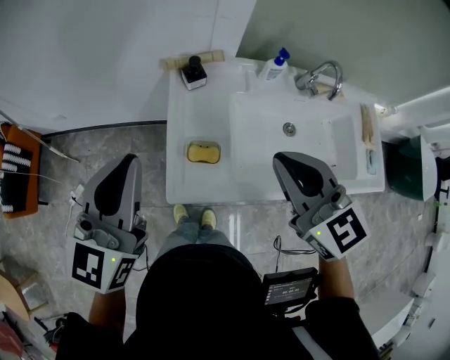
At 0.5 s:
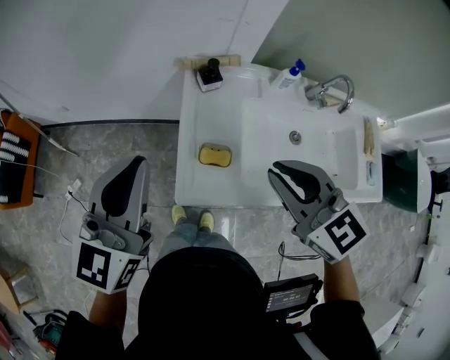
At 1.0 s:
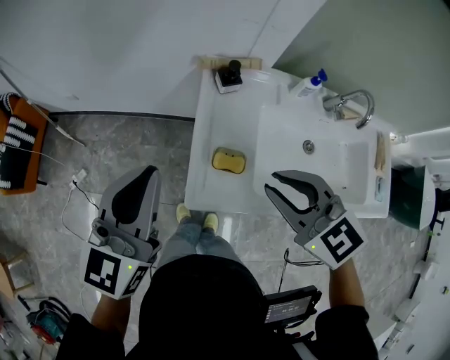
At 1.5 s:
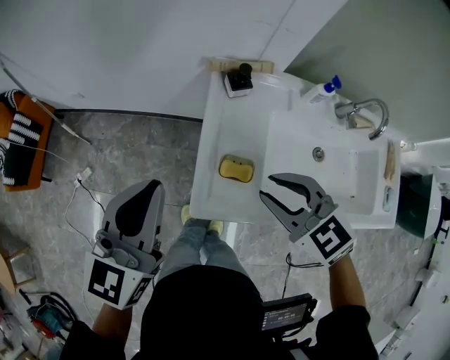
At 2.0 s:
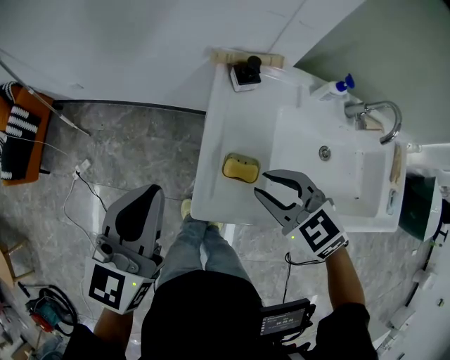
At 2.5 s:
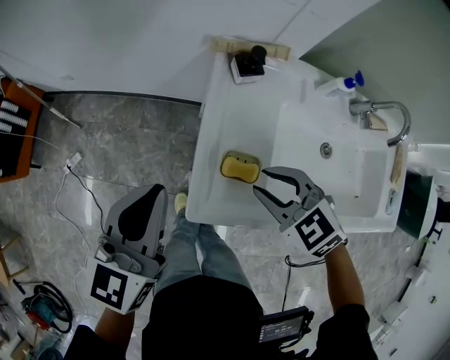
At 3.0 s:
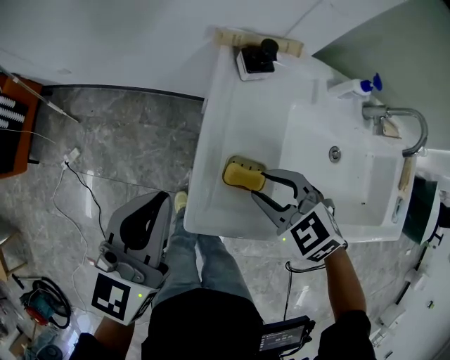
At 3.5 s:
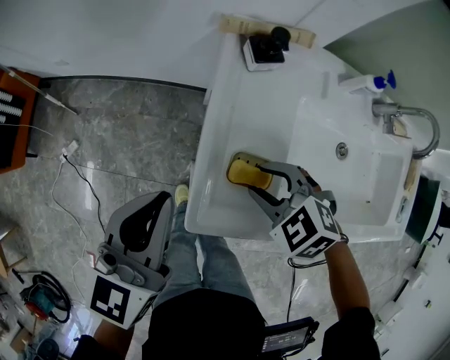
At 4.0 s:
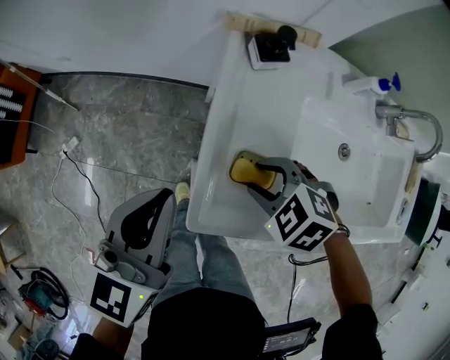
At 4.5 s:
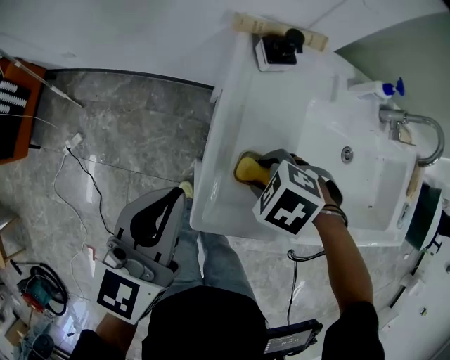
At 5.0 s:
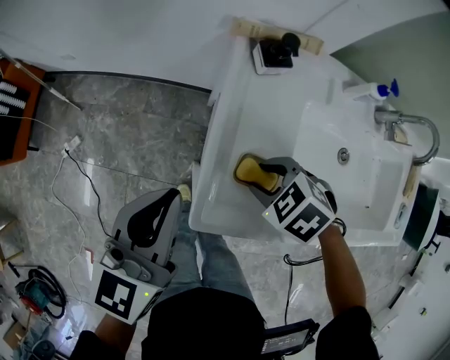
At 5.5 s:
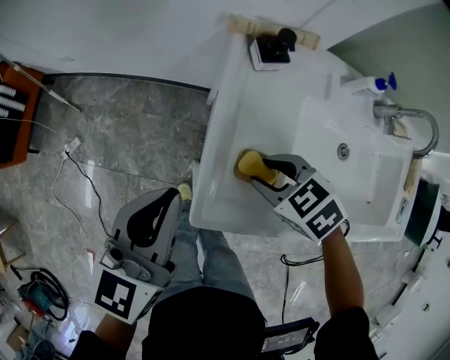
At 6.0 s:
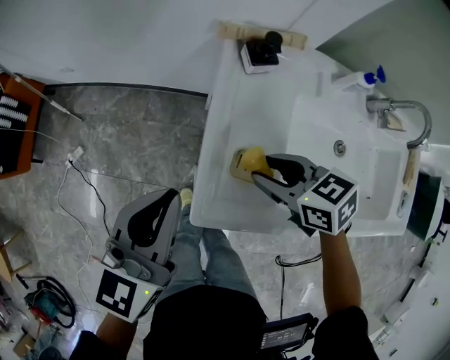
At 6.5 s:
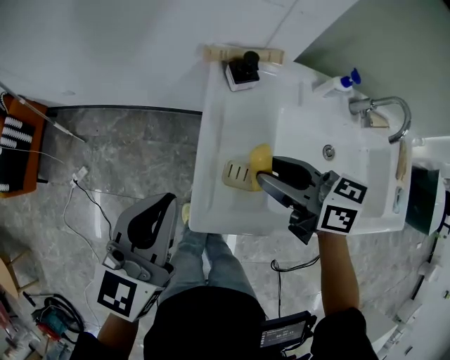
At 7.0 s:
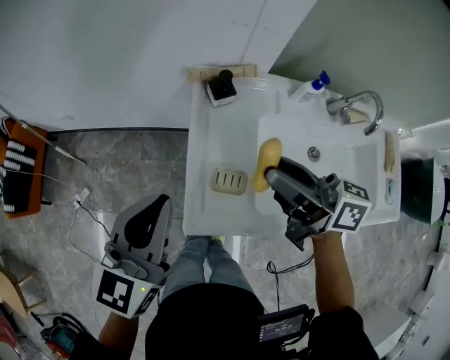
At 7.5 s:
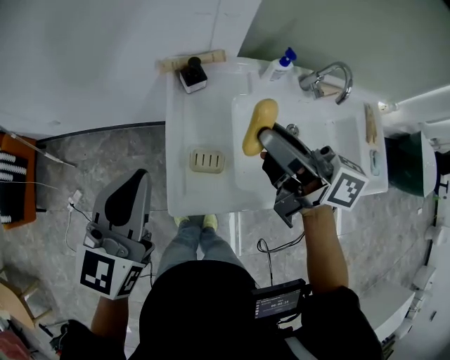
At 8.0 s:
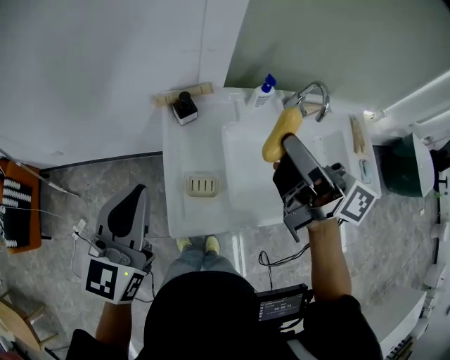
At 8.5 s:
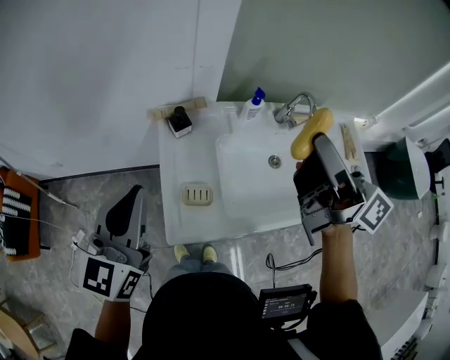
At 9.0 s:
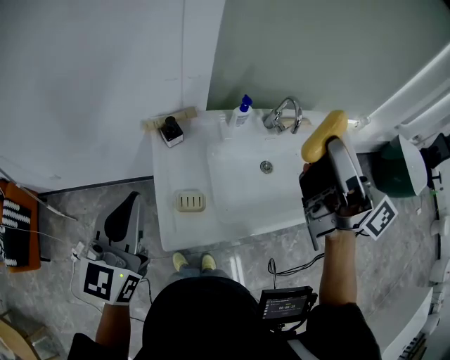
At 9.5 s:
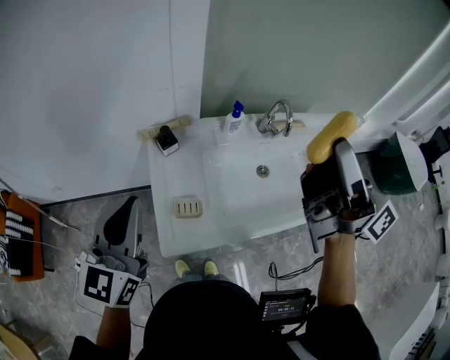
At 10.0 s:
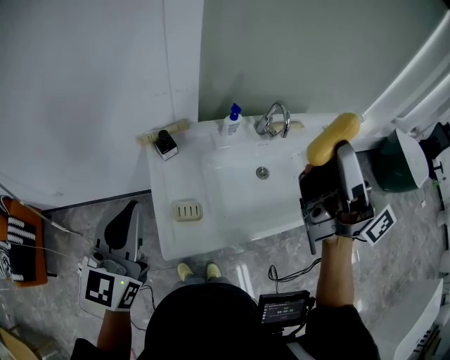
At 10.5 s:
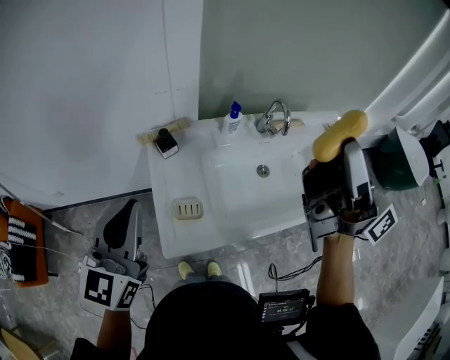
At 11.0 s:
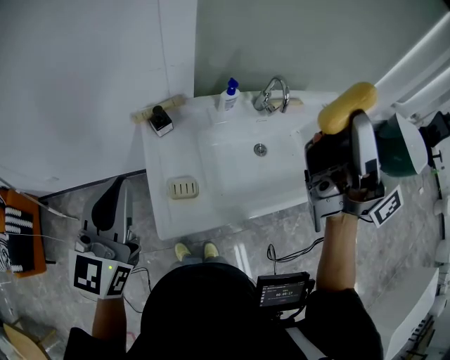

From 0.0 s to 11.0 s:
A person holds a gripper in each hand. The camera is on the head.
From 0.0 s to 2.0 s: The right gripper travels downward and to the left by approximately 20 cm, rotates about 40 degrees, and opens up, while the left gripper is displaced downward and to the left by about 10 cm.
From 2.0 s to 3.5 s: The grippers both shift downward by roughly 10 cm.
From 5.5 s to 7.5 s: The right gripper moves upward, approximately 30 cm, and angles its fingers upward, by roughly 70 degrees; the left gripper travels upward by roughly 15 cm.
From 7.5 s to 9.0 s: The right gripper goes about 20 cm upward and to the right, and changes its angle by roughly 30 degrees, while the left gripper shifts approximately 5 cm upward.
From 9.0 s to 11.0 s: The right gripper changes place by some 5 cm.

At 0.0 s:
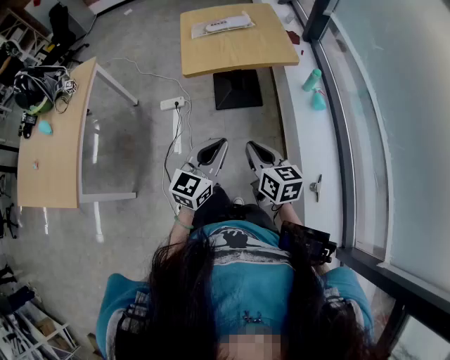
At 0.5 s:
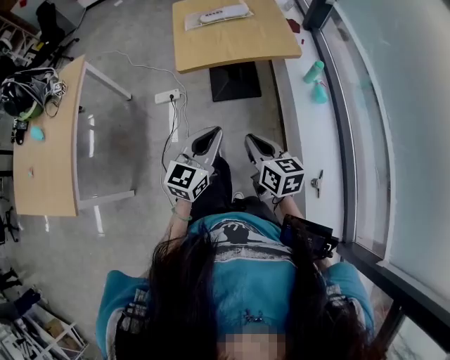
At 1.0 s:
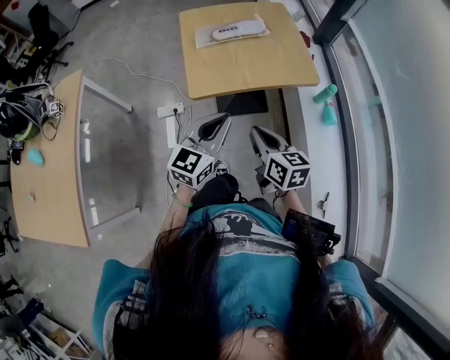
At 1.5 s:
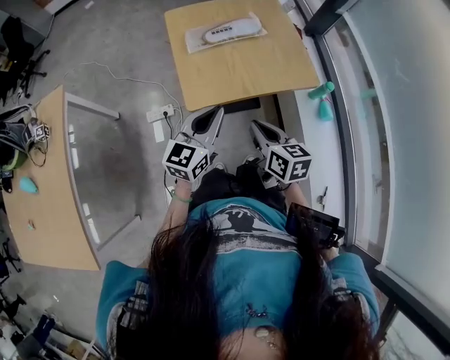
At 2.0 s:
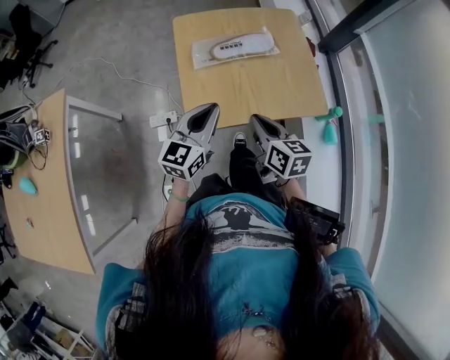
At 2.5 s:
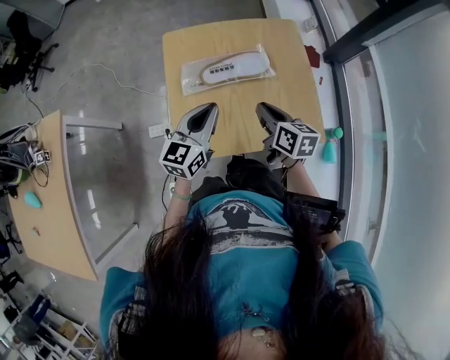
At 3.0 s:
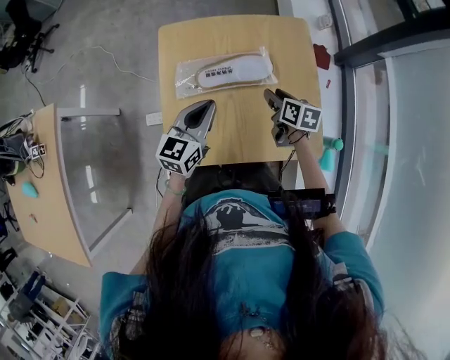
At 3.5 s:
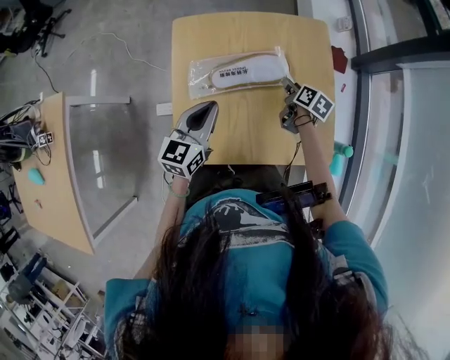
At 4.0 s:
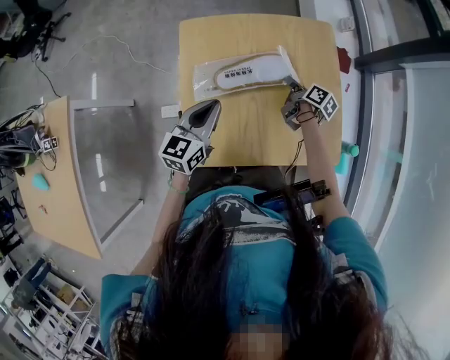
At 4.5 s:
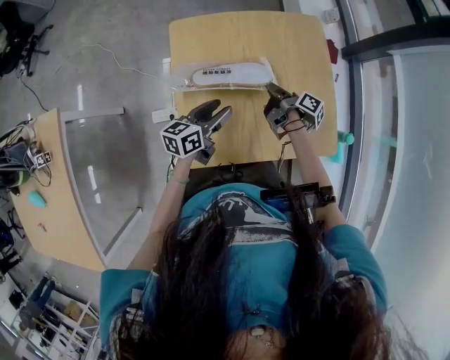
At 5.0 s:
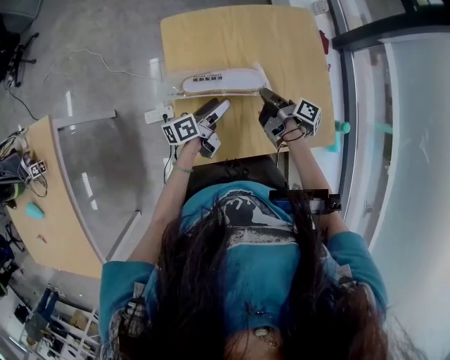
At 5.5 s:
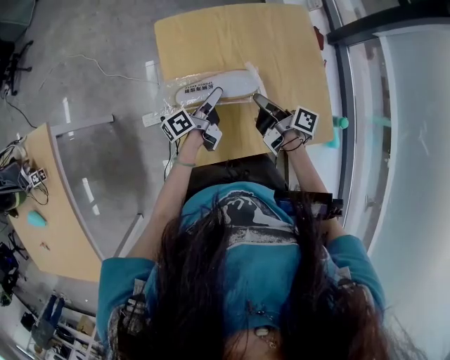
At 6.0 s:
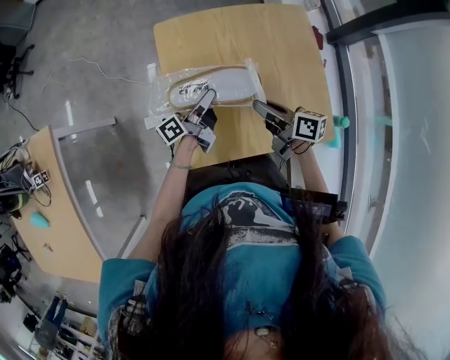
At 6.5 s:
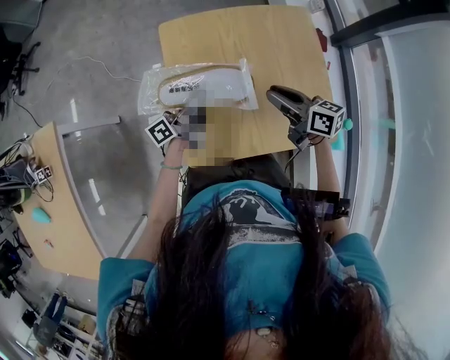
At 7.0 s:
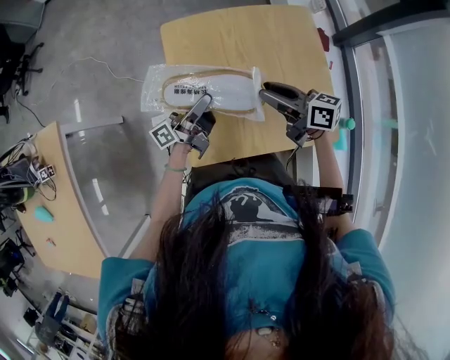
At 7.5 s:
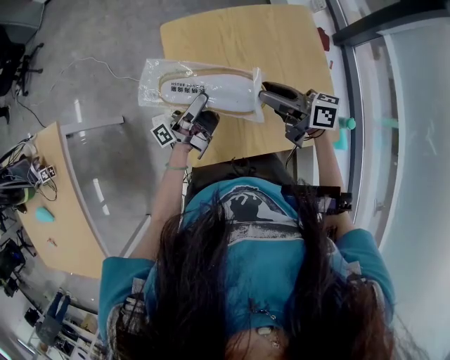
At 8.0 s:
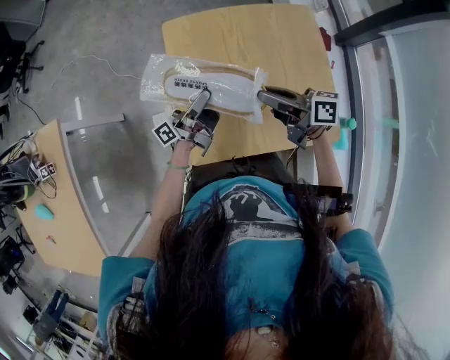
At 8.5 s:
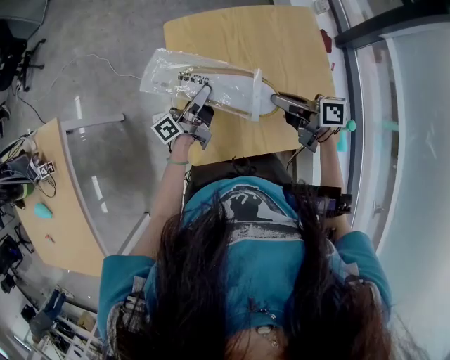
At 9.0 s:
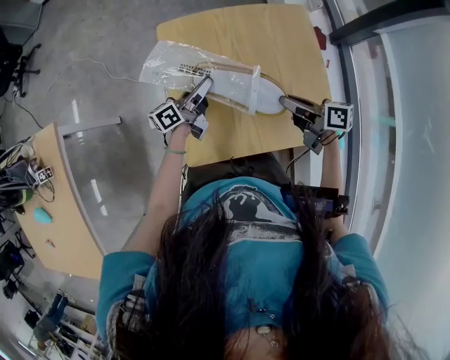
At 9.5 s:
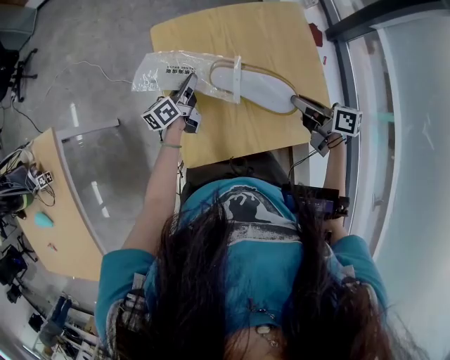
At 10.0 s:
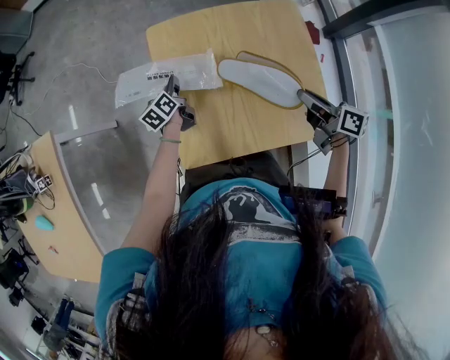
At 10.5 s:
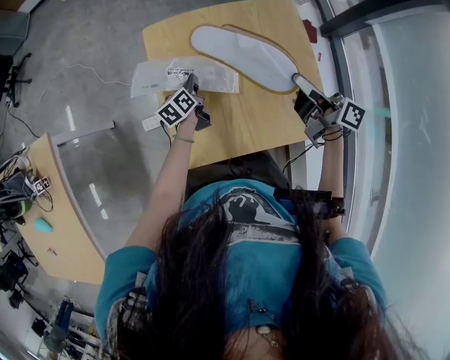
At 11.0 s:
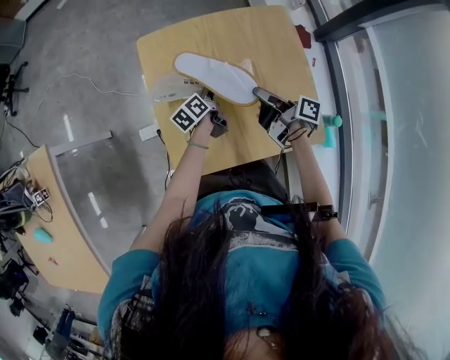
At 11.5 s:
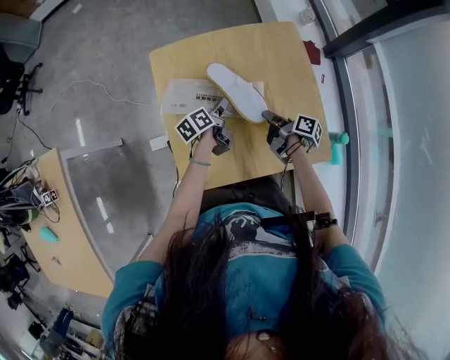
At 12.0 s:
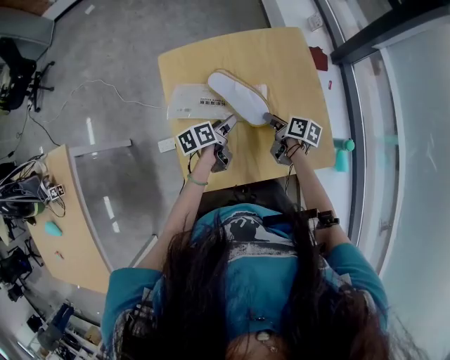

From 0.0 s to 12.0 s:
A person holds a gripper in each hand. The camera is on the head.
From 0.0 s to 2.0 s: The two grippers travel together, forward, some 50 cm.
From 2.0 s to 4.0 s: The left gripper heads forward, covering about 25 cm; the right gripper moves forward and downward, roughly 40 cm, rotates around the line of its fingers by roughly 40 degrees, clockwise from behind, and opens, then closes again.
From 4.0 s to 6.0 s: The left gripper goes roughly 10 cm downward, rotates around the line of its fingers by about 60 degrees, counterclockwise from behind, and opens. The right gripper goes roughly 20 cm backward, upward and to the left, and turns by about 30 degrees.
From 6.0 s to 8.0 s: The grippers both shift upward by roughly 5 cm. The left gripper changes its angle by some 20 degrees.
From 8.0 s to 10.0 s: The right gripper travels to the right by about 15 cm, and swivels approximately 20 degrees, while the left gripper travels downward, forward and to the left by approximately 20 cm, and points its fingers roughly 50 degrees further downward.
From 10.0 s to 12.0 s: The left gripper moves to the right and backward, some 20 cm, turns by some 30 degrees, and opens its fingers. Meanwhile the right gripper moves downward, roughly 15 cm, and turns by roughly 30 degrees.

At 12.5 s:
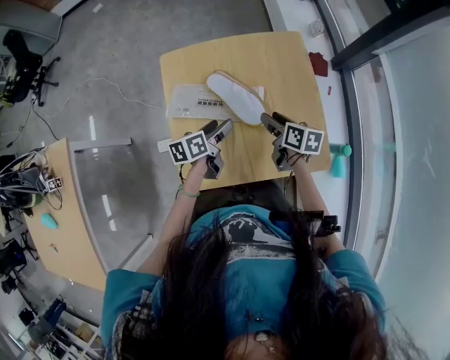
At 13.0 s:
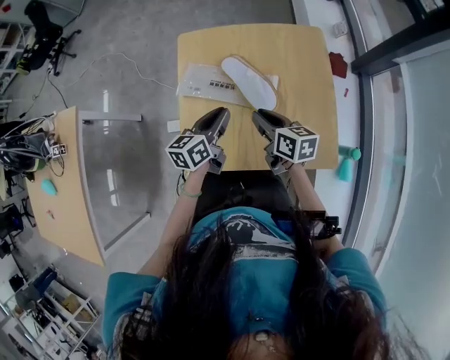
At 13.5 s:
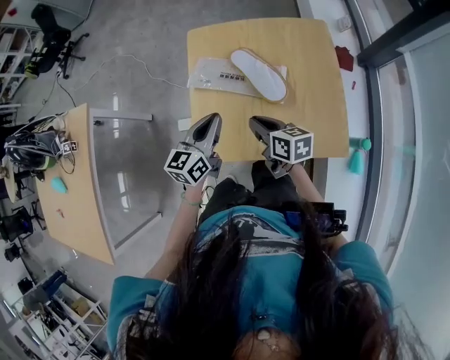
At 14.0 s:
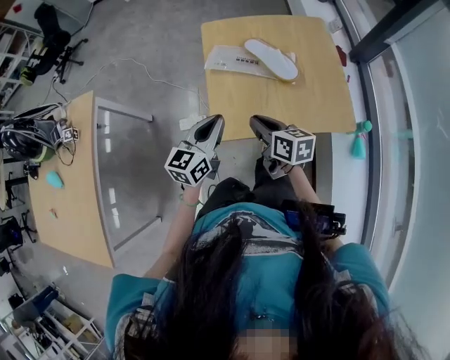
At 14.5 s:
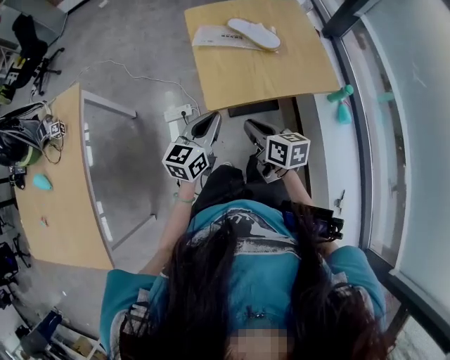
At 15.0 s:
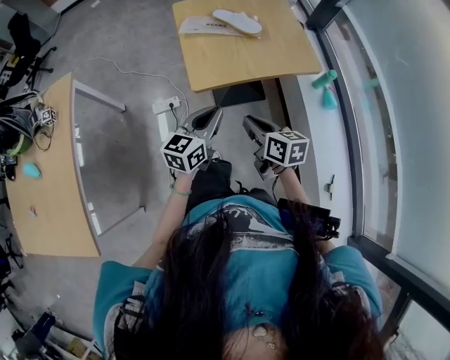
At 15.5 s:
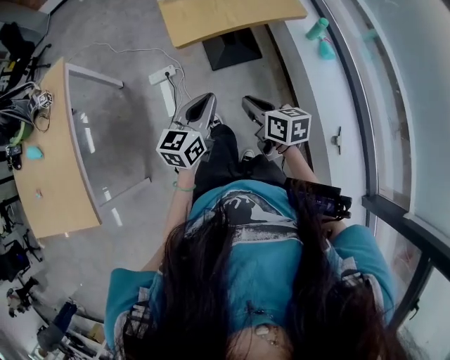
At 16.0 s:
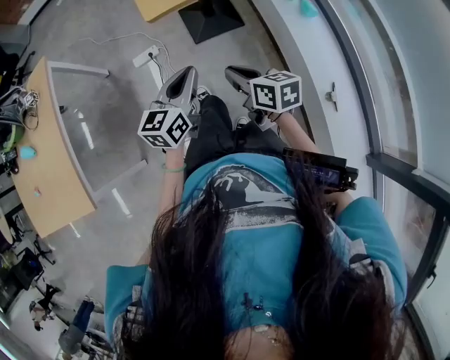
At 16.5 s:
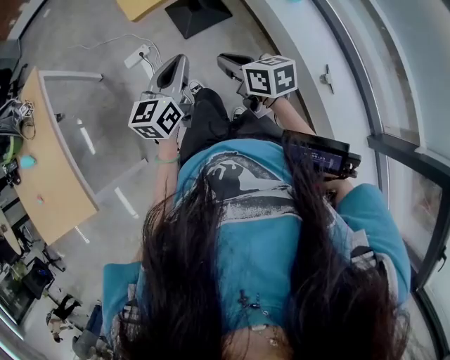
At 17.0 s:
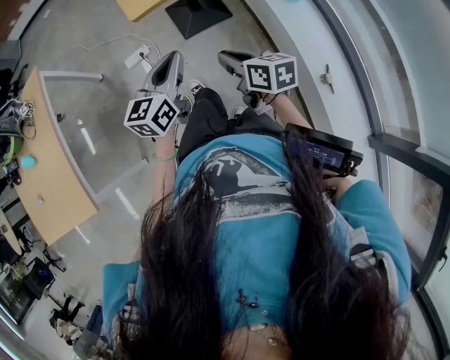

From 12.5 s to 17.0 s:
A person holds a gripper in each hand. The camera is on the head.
From 12.5 s to 14.5 s: Both grippers travel together backward and to the left, roughly 40 cm. The left gripper rotates about 40 degrees, and closes its fingers. The right gripper closes up.
From 14.5 s to 17.0 s: The two grippers go roughly 30 cm backward.
